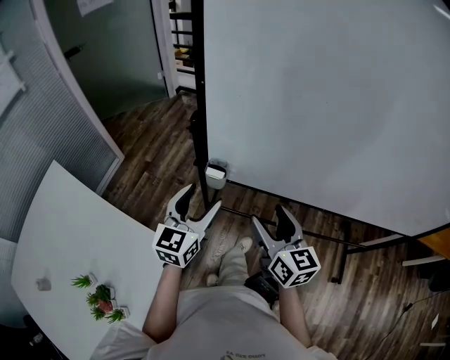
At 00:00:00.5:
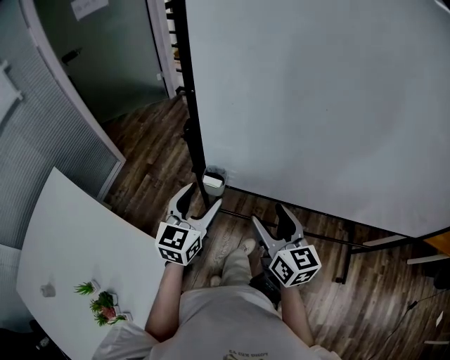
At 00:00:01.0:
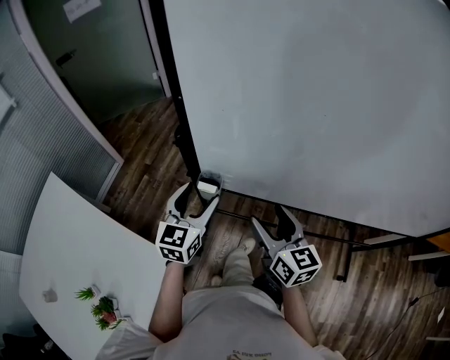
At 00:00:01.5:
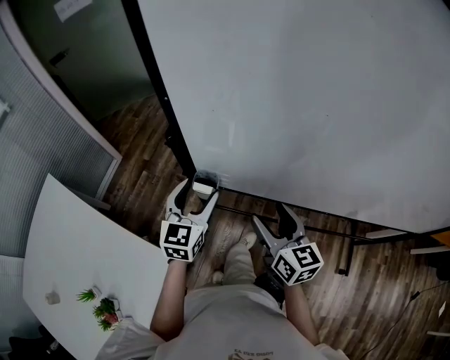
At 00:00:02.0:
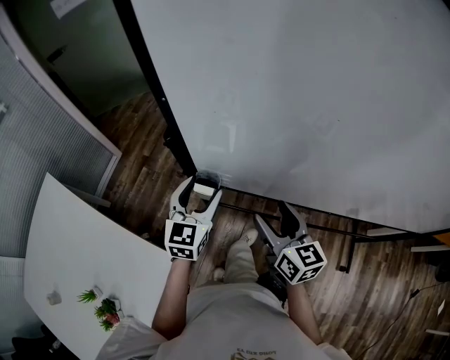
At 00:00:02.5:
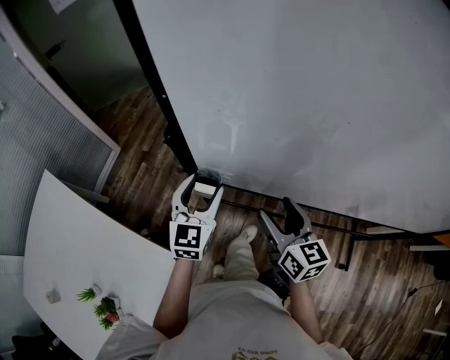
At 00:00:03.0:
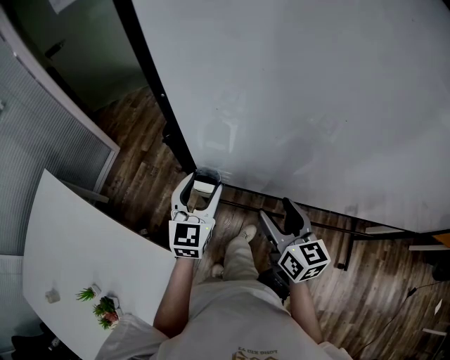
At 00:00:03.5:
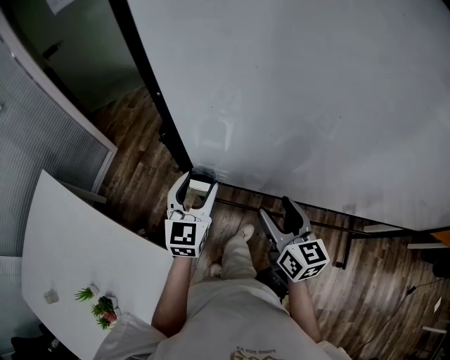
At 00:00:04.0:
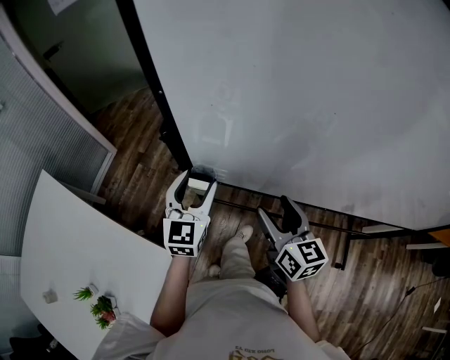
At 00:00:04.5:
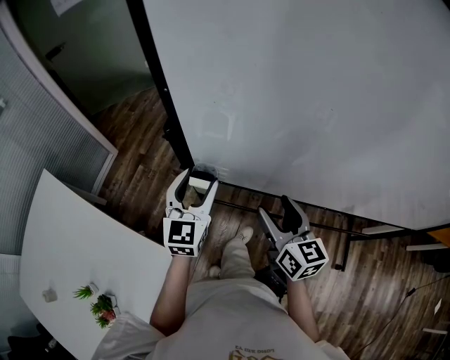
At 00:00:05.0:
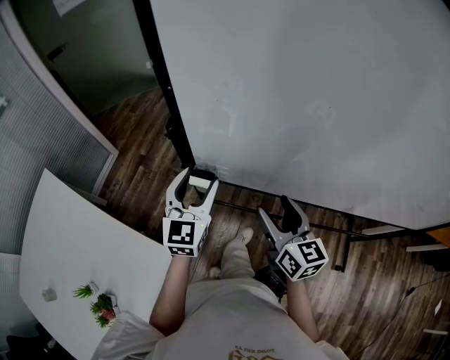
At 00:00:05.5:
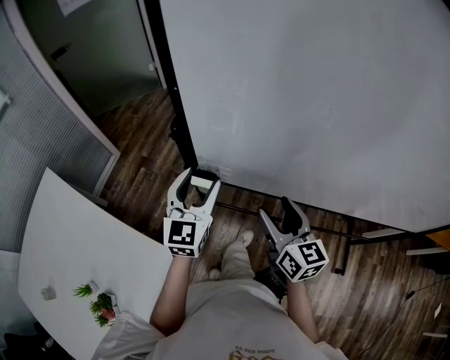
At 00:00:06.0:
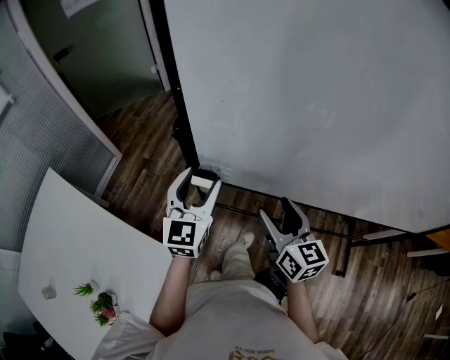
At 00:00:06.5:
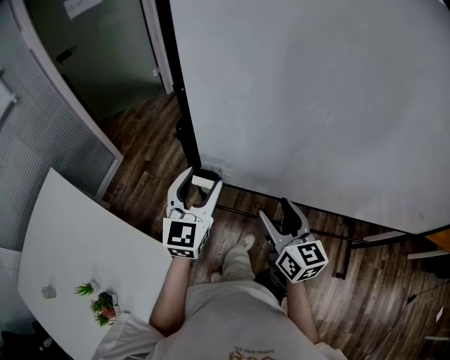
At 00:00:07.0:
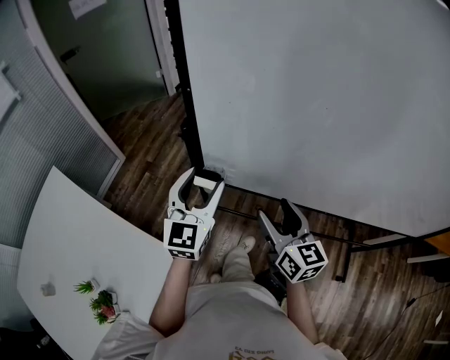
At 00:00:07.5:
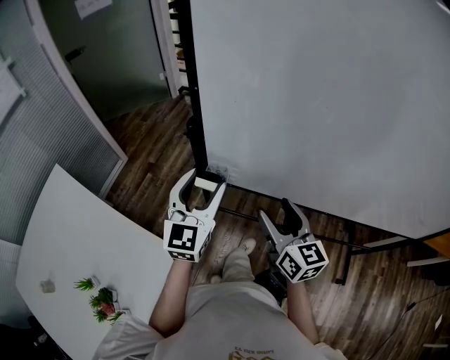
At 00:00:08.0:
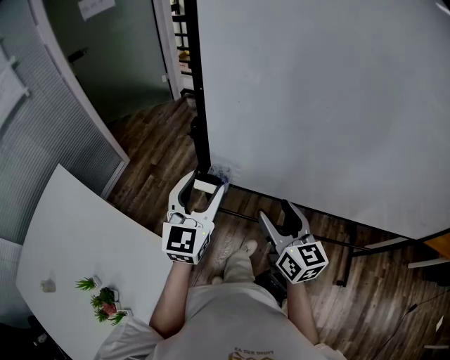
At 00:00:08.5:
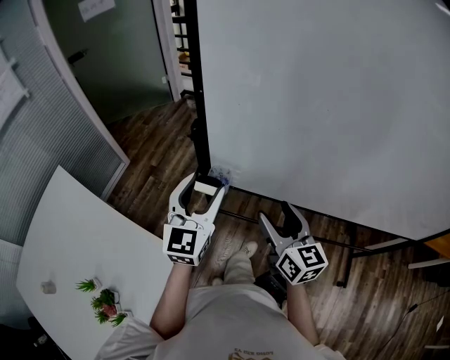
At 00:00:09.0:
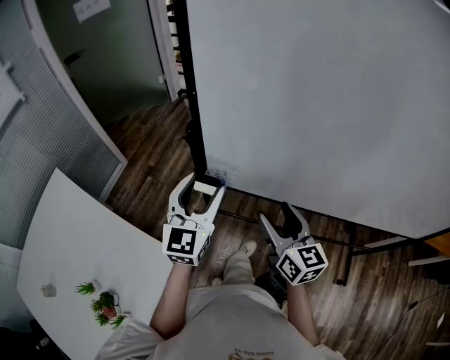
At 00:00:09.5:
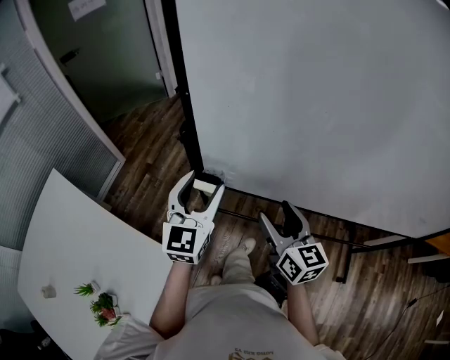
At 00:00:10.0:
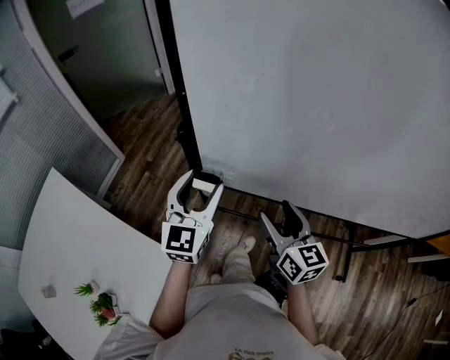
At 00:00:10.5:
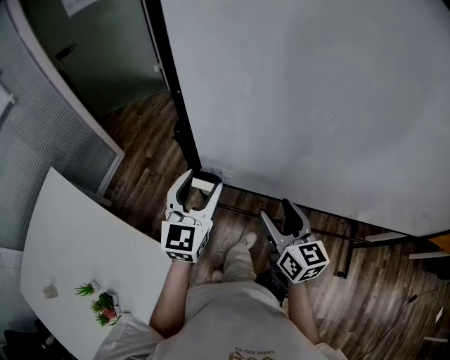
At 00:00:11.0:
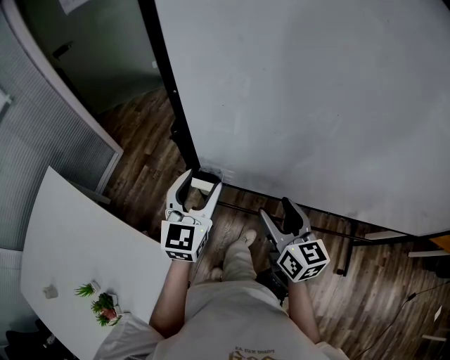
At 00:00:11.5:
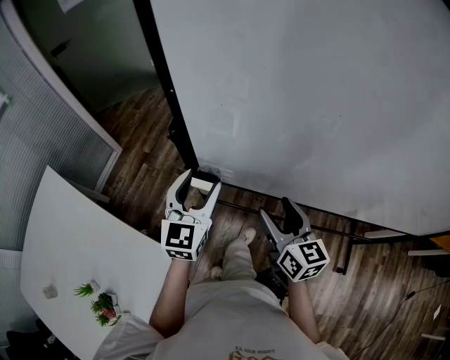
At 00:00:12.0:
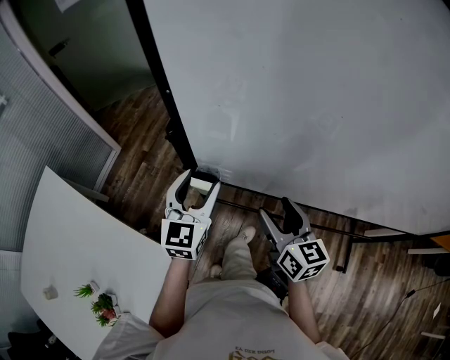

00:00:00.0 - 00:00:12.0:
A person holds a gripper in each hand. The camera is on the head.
00:00:00.0 - 00:00:02.0: The two grippers go some 10 cm forward.
00:00:02.0 - 00:00:04.0: There are only small adjustments of the grippers.
00:00:04.0 - 00:00:06.0: The left gripper moves about 5 cm.
00:00:06.0 - 00:00:08.0: The left gripper ends up some 5 cm from where it was.
00:00:08.0 - 00:00:10.0: The grippers move only a little.
00:00:10.0 - 00:00:12.0: The left gripper is displaced downward by roughly 5 cm.

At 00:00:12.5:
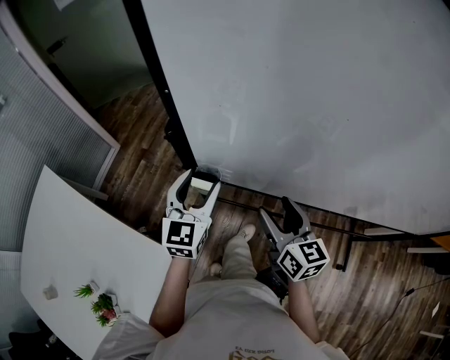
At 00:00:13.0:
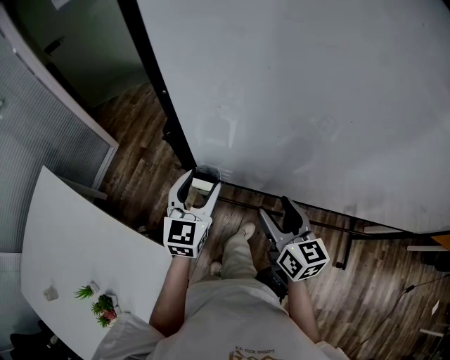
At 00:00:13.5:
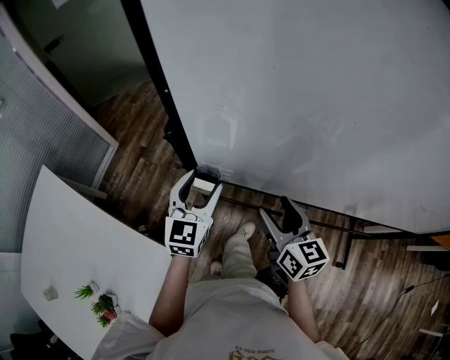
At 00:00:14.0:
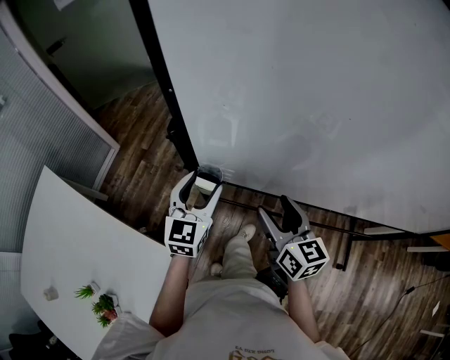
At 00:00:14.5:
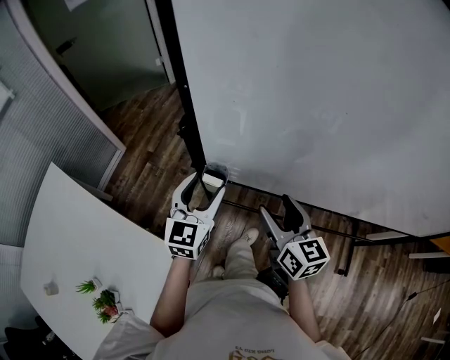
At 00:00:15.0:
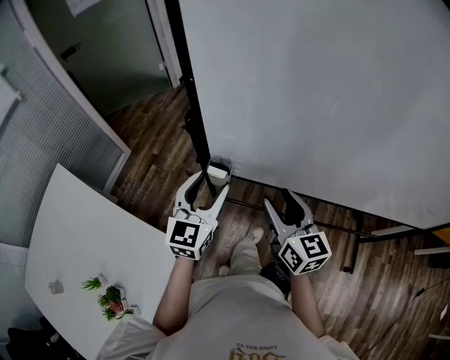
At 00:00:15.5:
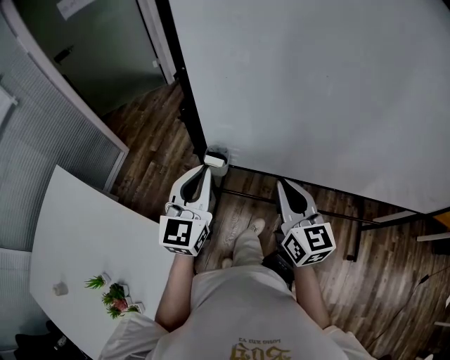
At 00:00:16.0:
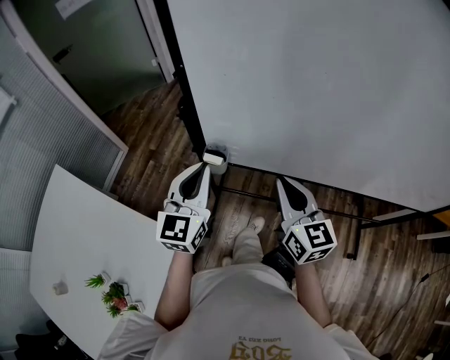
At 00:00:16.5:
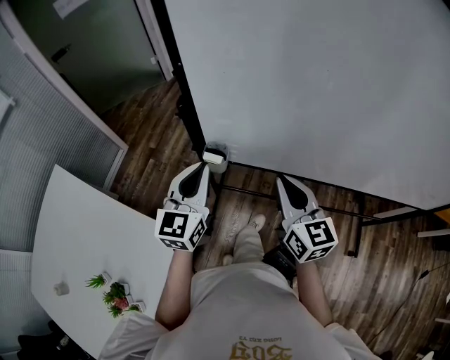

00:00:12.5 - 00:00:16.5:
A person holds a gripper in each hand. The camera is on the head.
00:00:12.5 - 00:00:14.5: The grippers move only a little.
00:00:14.5 - 00:00:16.5: The right gripper closes up. The left gripper changes place by about 5 cm, and closes.

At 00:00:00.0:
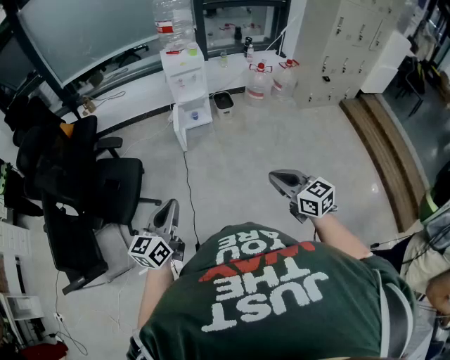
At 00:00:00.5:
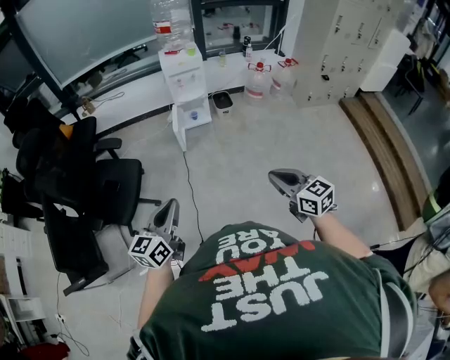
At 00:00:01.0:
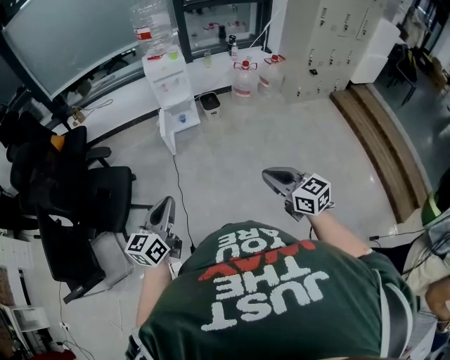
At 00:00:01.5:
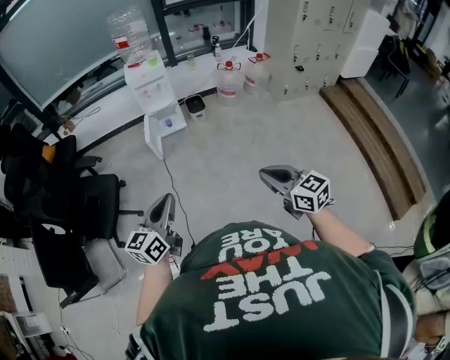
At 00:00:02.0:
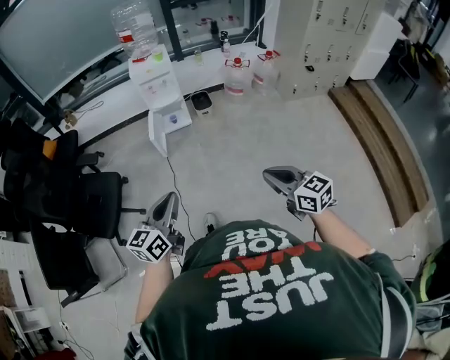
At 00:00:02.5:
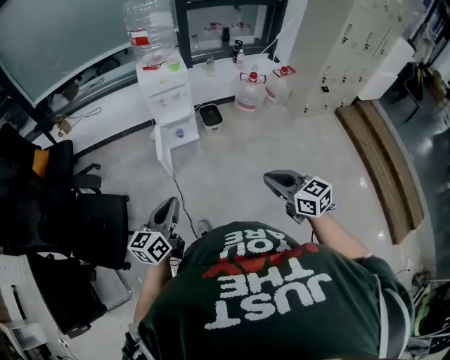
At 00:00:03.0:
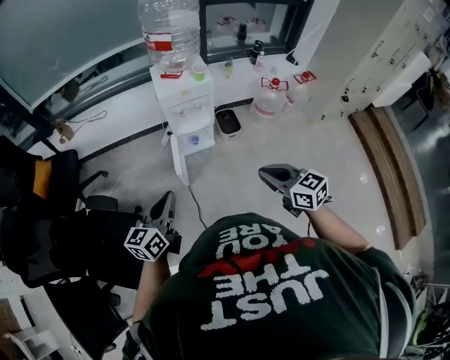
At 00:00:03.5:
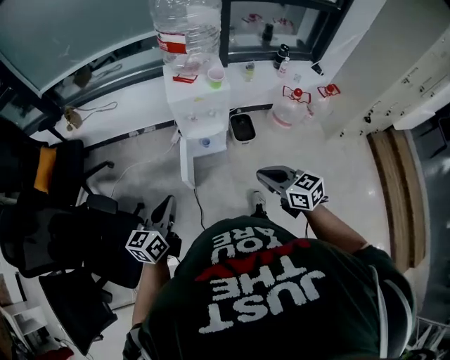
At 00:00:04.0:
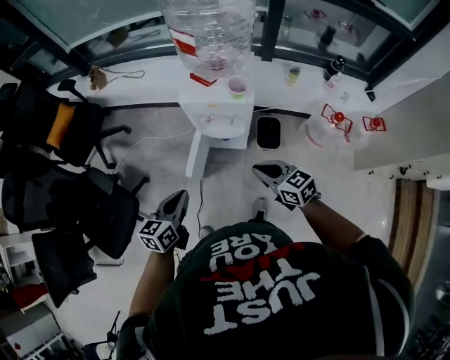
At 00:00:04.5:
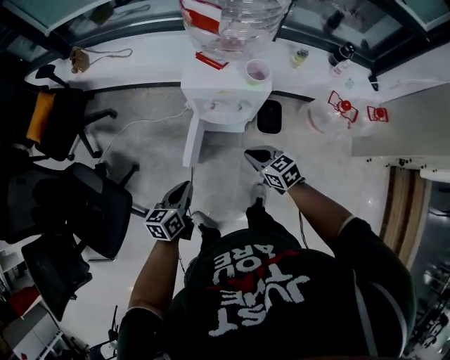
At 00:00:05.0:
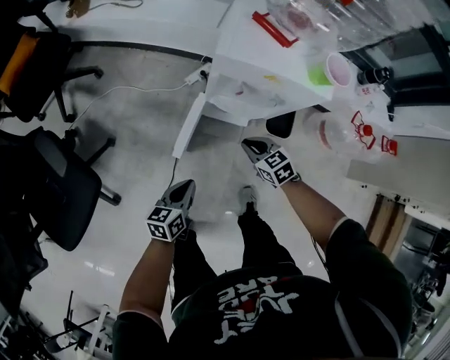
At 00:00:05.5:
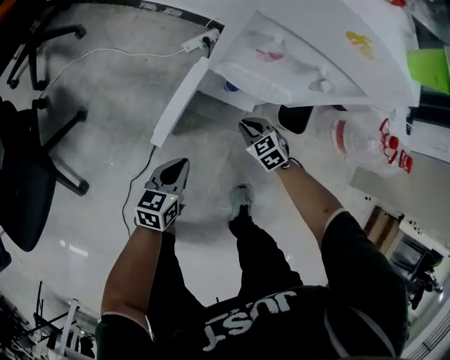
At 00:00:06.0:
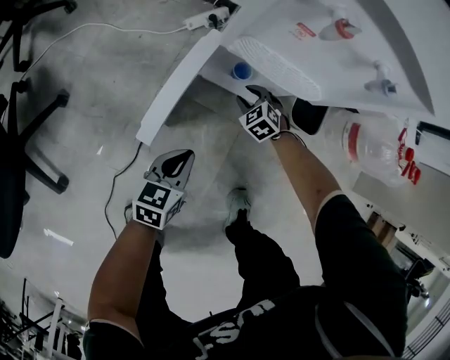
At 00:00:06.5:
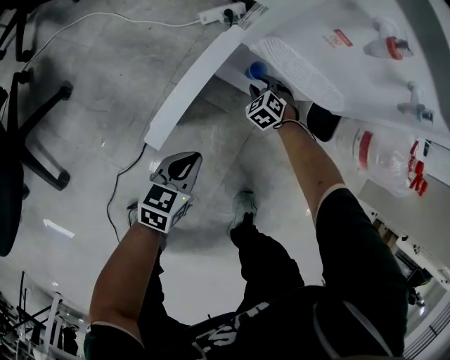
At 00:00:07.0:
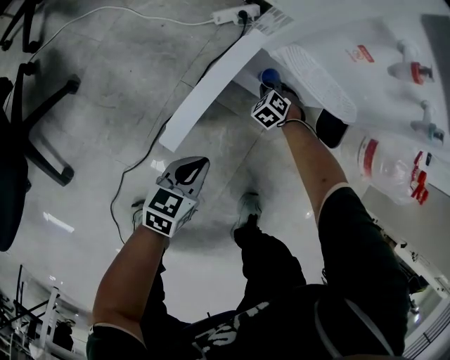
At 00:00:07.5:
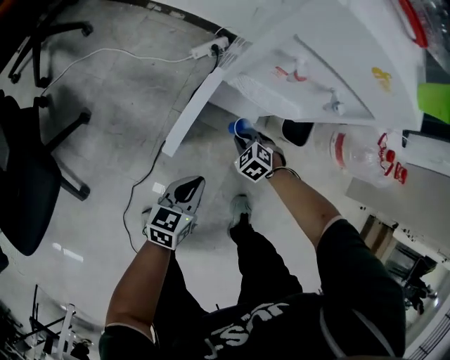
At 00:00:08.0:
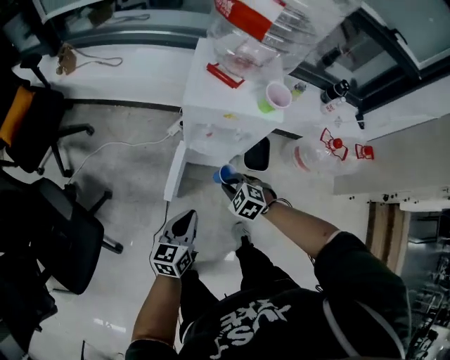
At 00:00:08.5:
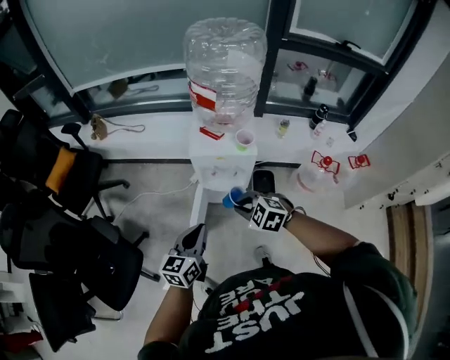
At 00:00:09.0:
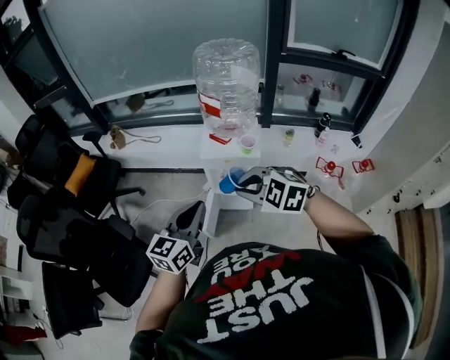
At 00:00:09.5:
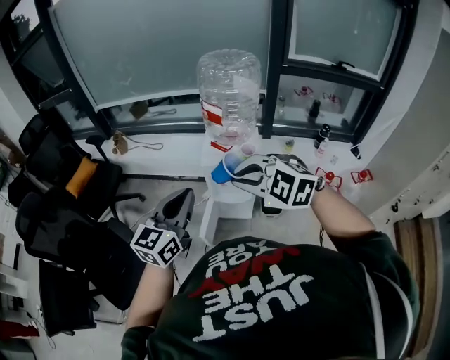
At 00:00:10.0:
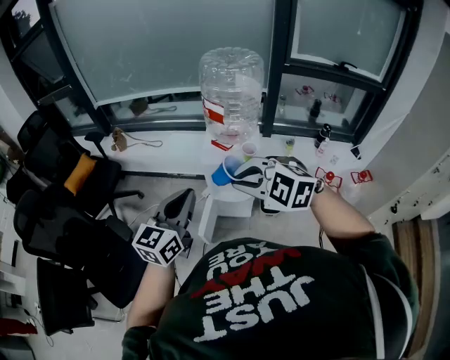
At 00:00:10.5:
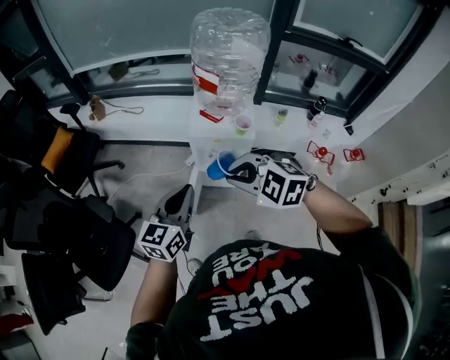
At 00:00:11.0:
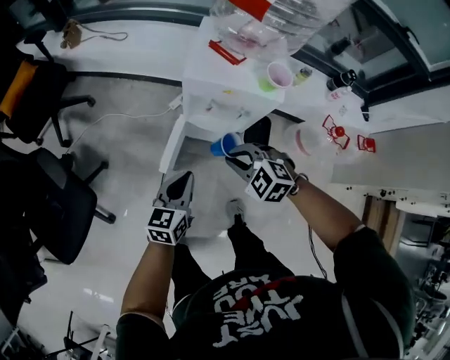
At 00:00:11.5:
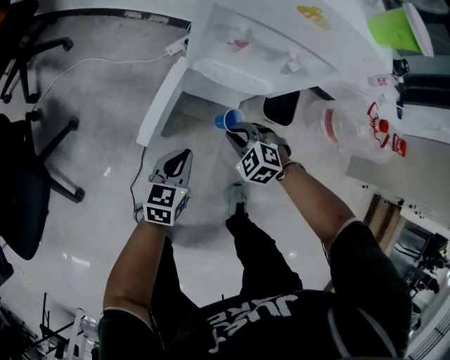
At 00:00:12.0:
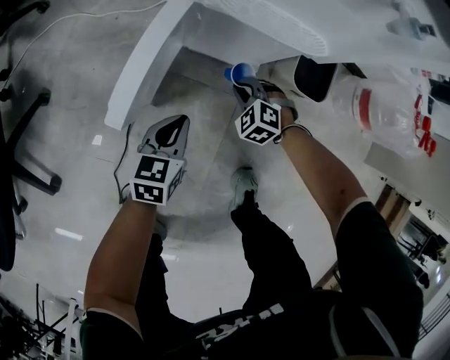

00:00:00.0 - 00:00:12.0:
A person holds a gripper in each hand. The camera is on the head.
00:00:00.0 - 00:00:02.0: The grippers both shift to the right by roughly 20 cm.
00:00:02.0 - 00:00:04.0: The pair of grippers is taken approximately 70 cm. The right gripper rotates some 30 degrees. The left gripper rotates roughly 30 degrees.
00:00:04.0 - 00:00:06.0: The grippers both shift downward by some 70 cm. The right gripper tips its fingers downward by about 30 degrees, and opens its fingers.
00:00:06.0 - 00:00:08.0: Both grippers travel together upward, about 40 cm. The right gripper closes its fingers.
00:00:08.0 - 00:00:10.0: The two grippers go approximately 50 cm upward. The left gripper turns by approximately 30 degrees. Meanwhile the right gripper rotates about 40 degrees.
00:00:10.0 - 00:00:12.0: The two grippers go roughly 90 cm downward. The right gripper rotates approximately 30 degrees. Meanwhile the left gripper points its fingers approximately 30 degrees further downward.
